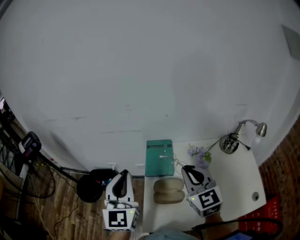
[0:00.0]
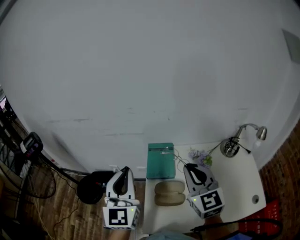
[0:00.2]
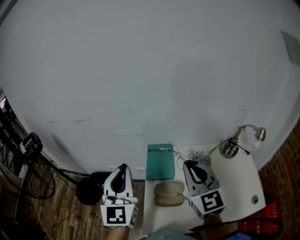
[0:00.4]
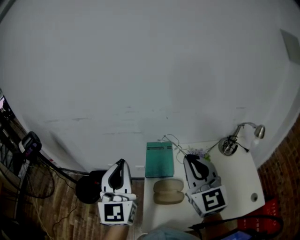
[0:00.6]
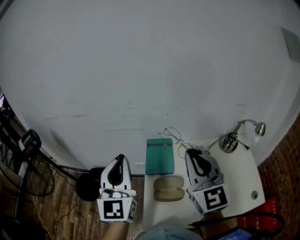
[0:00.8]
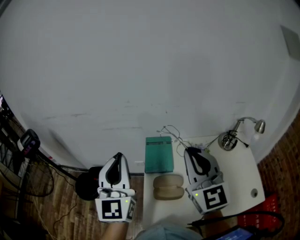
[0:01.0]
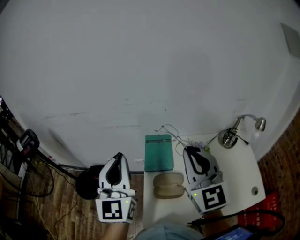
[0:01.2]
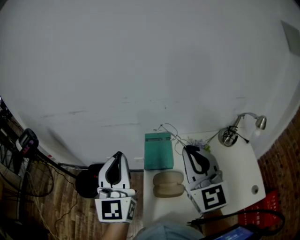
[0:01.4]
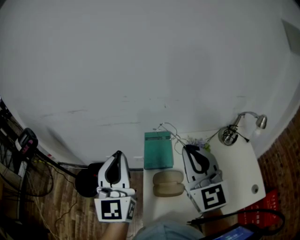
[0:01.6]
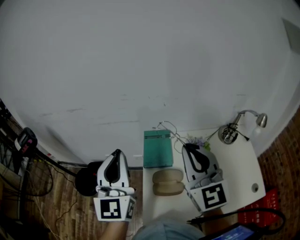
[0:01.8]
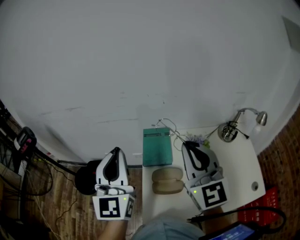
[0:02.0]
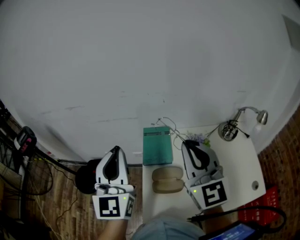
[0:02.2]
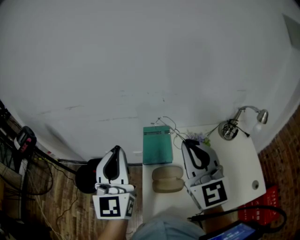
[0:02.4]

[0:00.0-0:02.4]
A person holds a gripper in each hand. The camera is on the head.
0:00.0 to 0:01.2: The left gripper shifts roughly 5 cm upward, while the right gripper heads upward, covering approximately 10 cm.
0:01.2 to 0:02.4: Both grippers stay about where they are.

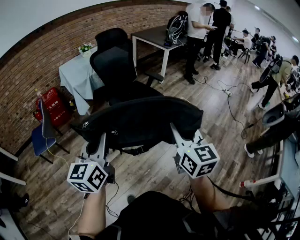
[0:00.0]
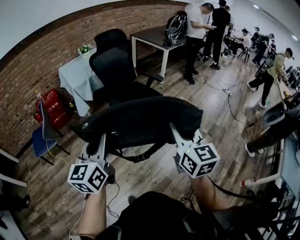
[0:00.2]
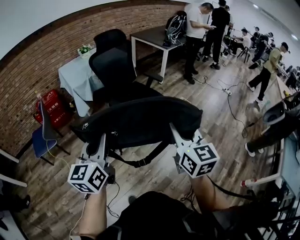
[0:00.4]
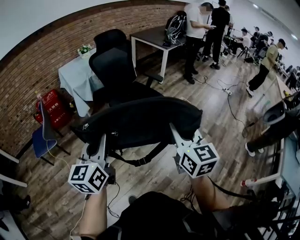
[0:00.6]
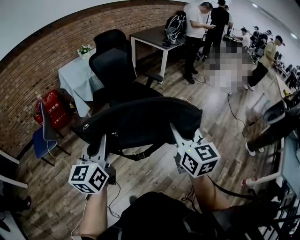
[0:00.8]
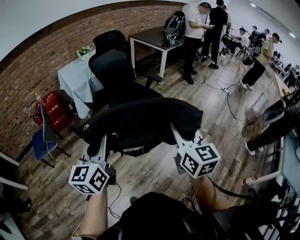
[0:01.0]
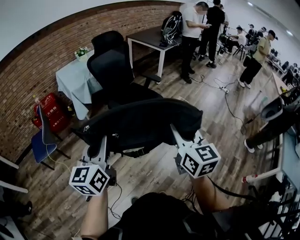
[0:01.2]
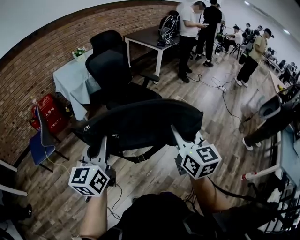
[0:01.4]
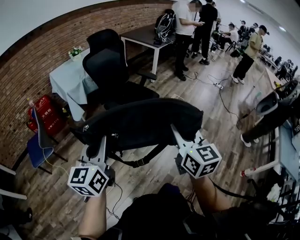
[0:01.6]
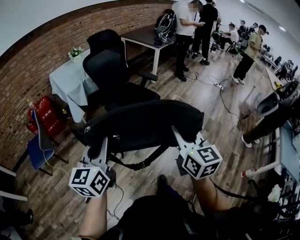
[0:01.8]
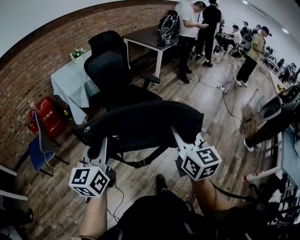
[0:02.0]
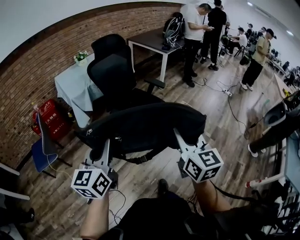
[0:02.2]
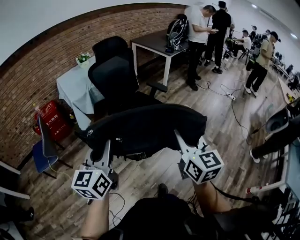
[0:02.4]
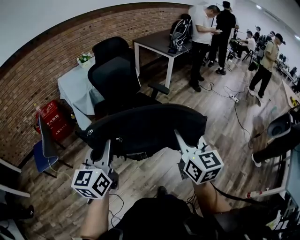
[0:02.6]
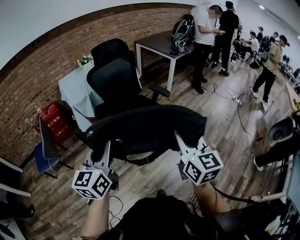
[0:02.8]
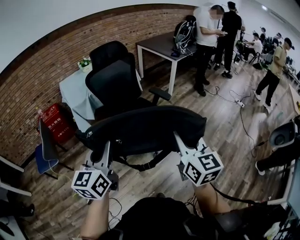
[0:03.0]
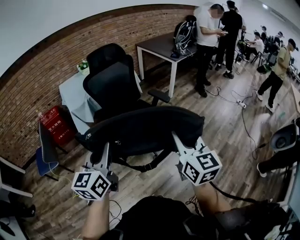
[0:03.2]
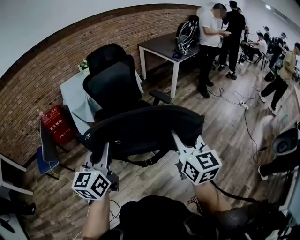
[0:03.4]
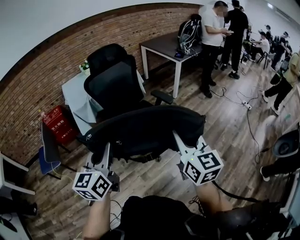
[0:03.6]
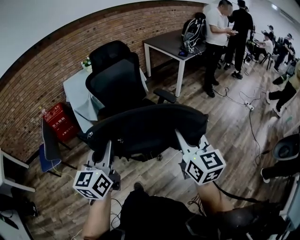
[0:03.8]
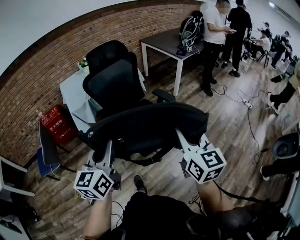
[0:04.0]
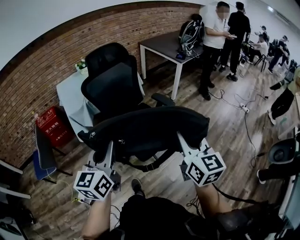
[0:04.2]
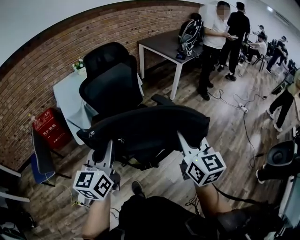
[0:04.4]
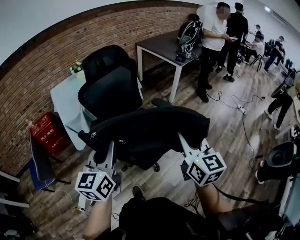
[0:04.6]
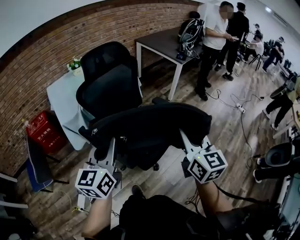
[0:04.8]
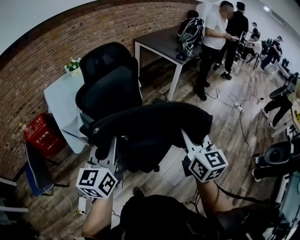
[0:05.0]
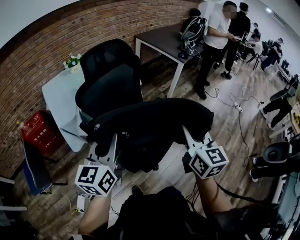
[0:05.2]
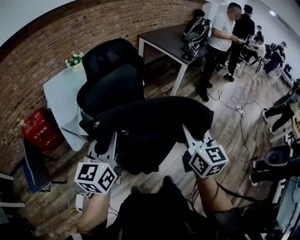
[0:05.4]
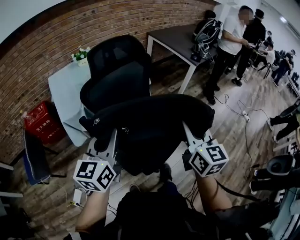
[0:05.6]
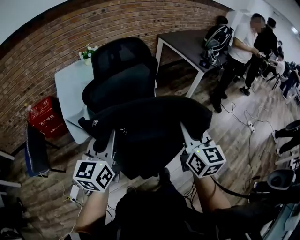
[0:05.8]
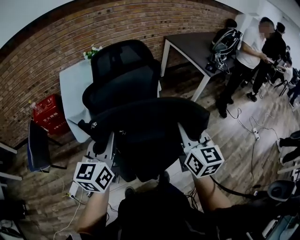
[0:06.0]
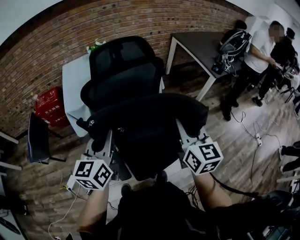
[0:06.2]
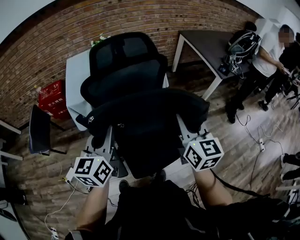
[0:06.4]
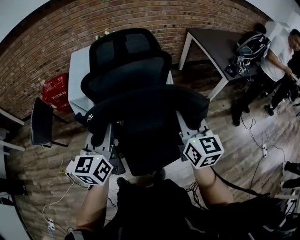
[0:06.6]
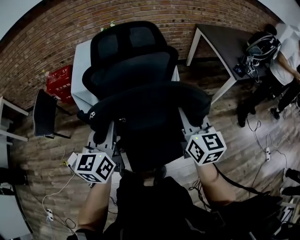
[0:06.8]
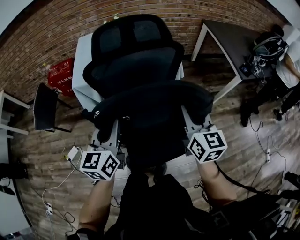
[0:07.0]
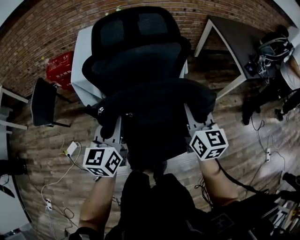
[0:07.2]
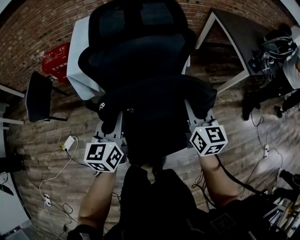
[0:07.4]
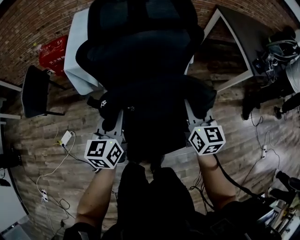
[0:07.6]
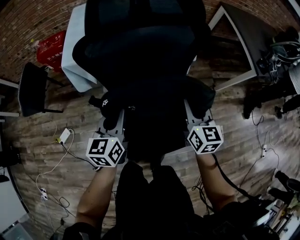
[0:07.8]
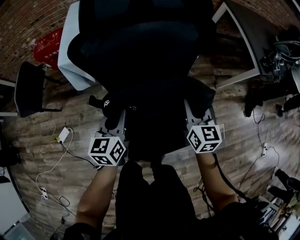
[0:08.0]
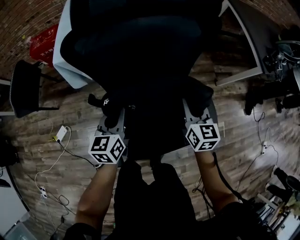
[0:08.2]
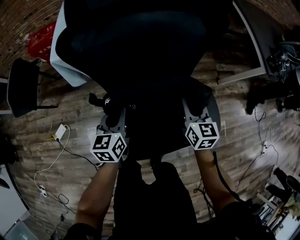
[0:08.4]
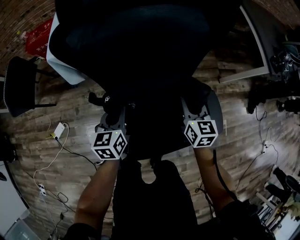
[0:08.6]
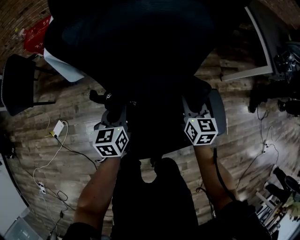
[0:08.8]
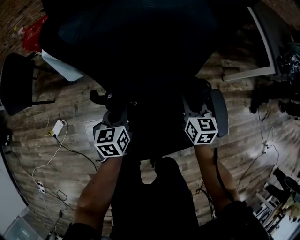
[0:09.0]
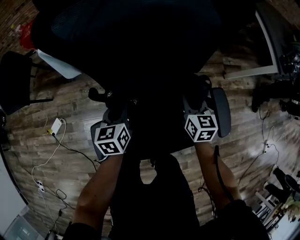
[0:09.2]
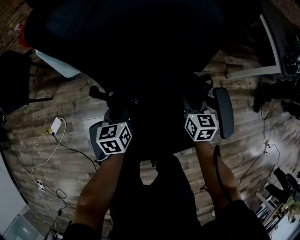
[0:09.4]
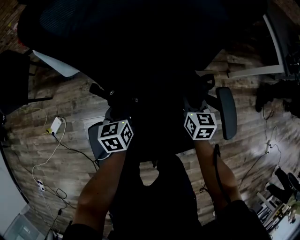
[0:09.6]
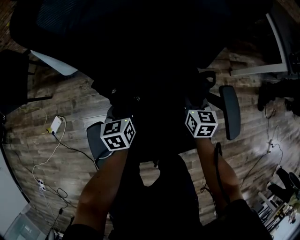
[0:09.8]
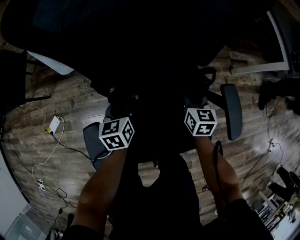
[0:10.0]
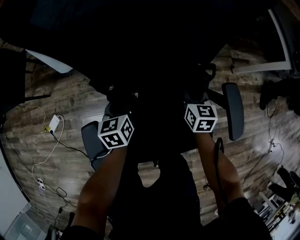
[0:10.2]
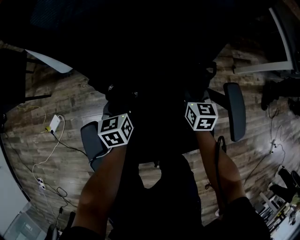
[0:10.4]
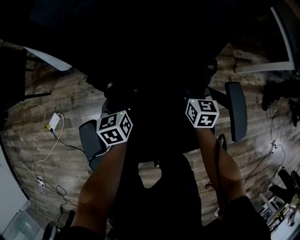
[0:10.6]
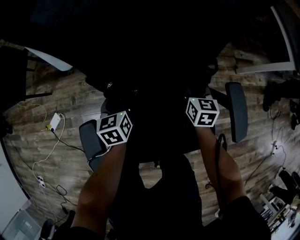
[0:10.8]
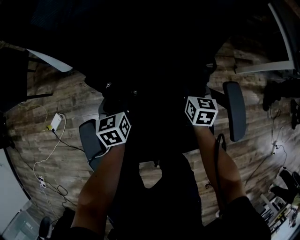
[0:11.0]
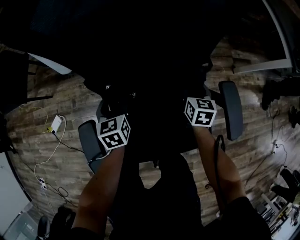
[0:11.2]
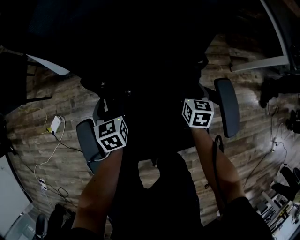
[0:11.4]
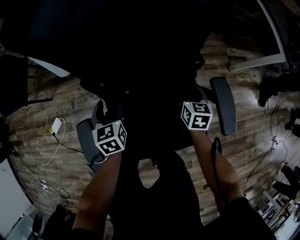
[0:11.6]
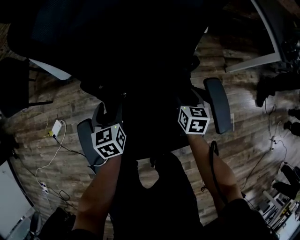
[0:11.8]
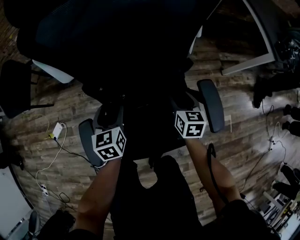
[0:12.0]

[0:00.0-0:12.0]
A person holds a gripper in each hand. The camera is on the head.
0:00.0 to 0:01.6: The grippers make only small movements.
0:01.6 to 0:03.0: The grippers both shift forward and to the right by roughly 20 cm.
0:03.0 to 0:04.4: Both grippers move forward, roughly 15 cm.
0:04.4 to 0:06.0: Both grippers travel together forward, about 25 cm.
0:06.0 to 0:07.6: The two grippers go some 20 cm downward and forward. The left gripper changes its angle by approximately 20 degrees.
0:07.6 to 0:09.0: The grippers both shift downward by some 25 cm.
0:09.0 to 0:10.4: Both grippers travel together downward, about 10 cm.
0:10.4 to 0:12.0: The right gripper travels upward and backward by approximately 10 cm, and opens up. The left gripper moves upward, some 10 cm, and opens up.

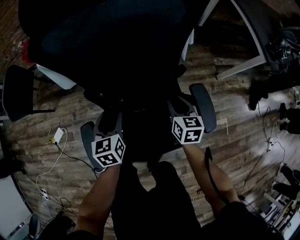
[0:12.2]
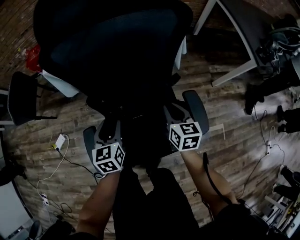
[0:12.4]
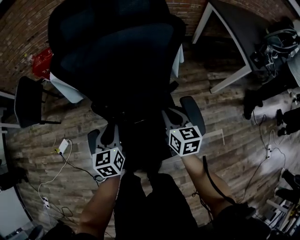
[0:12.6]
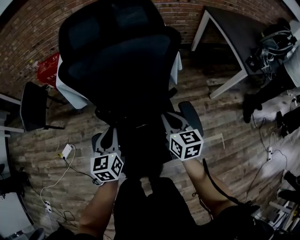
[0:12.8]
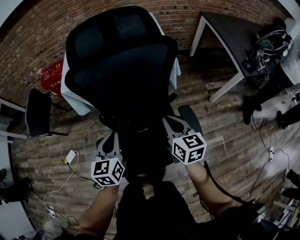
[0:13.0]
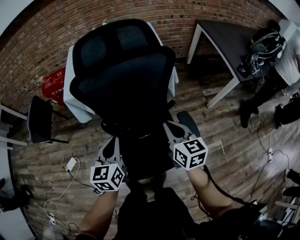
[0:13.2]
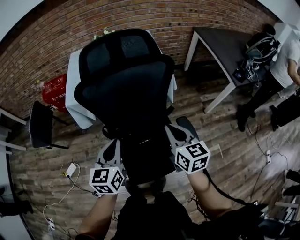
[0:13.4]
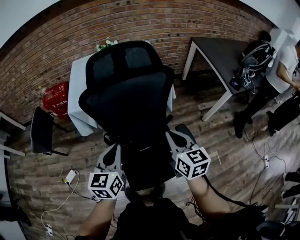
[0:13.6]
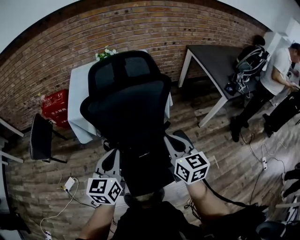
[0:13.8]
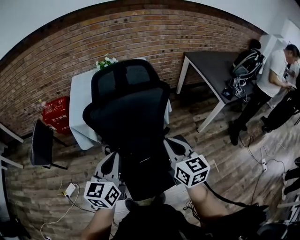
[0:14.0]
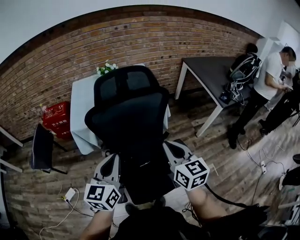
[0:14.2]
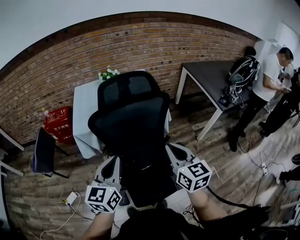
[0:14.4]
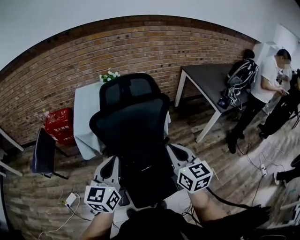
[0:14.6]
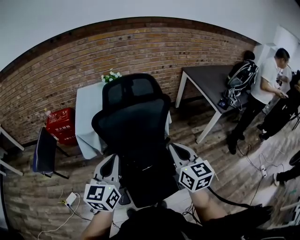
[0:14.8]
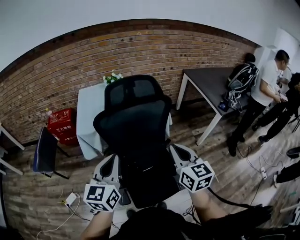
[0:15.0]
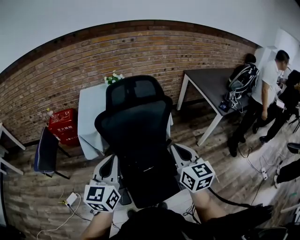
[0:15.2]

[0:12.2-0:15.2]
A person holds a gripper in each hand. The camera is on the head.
0:12.2 to 0:13.8: The grippers both shift upward by about 35 cm. The left gripper swivels about 30 degrees, and closes its fingers, while the right gripper closes.
0:13.8 to 0:15.2: Both grippers move upward, about 10 cm.

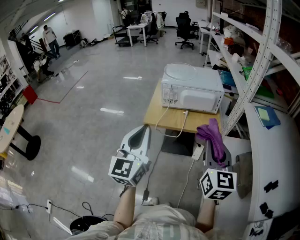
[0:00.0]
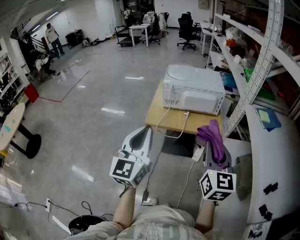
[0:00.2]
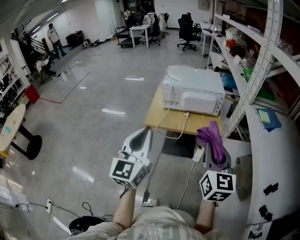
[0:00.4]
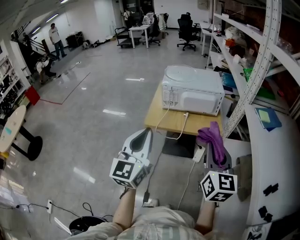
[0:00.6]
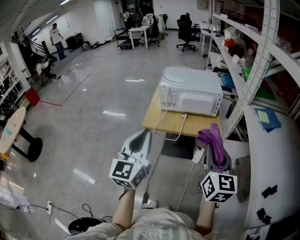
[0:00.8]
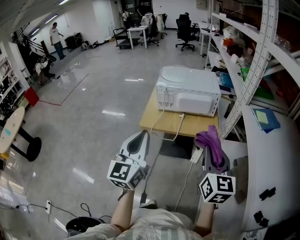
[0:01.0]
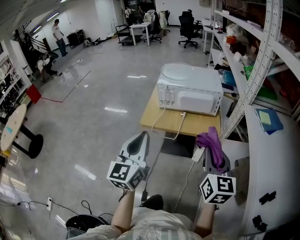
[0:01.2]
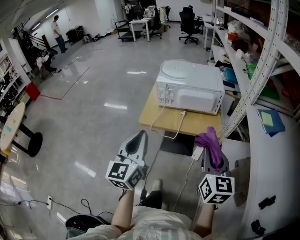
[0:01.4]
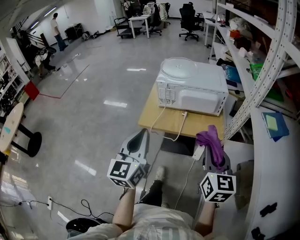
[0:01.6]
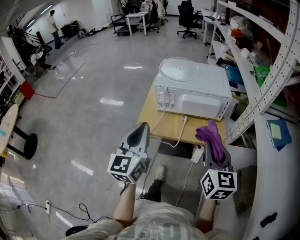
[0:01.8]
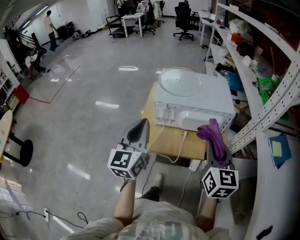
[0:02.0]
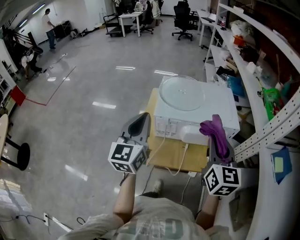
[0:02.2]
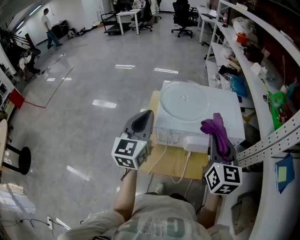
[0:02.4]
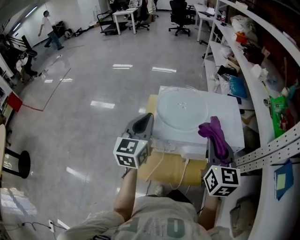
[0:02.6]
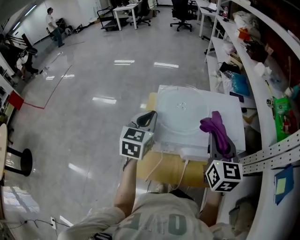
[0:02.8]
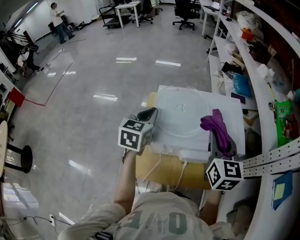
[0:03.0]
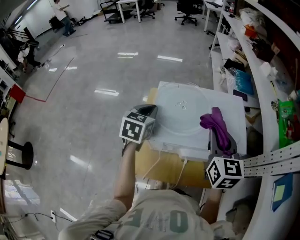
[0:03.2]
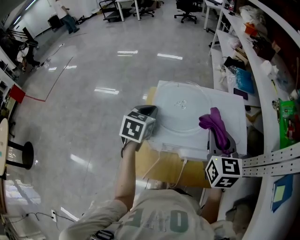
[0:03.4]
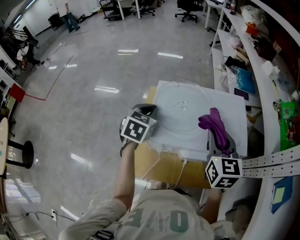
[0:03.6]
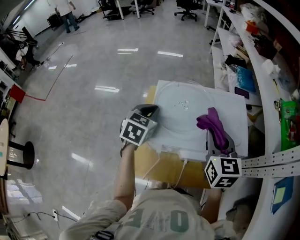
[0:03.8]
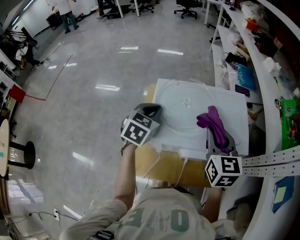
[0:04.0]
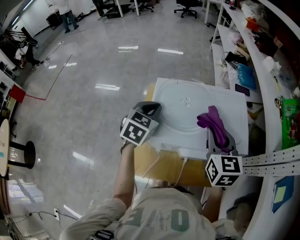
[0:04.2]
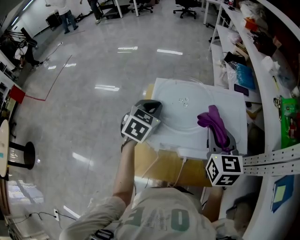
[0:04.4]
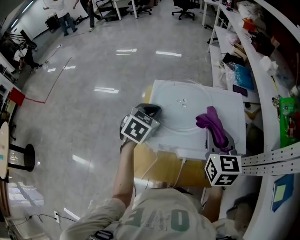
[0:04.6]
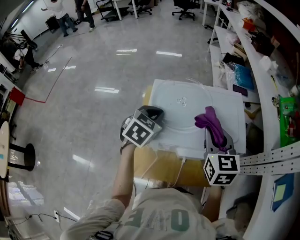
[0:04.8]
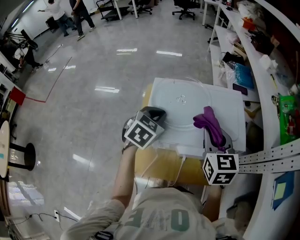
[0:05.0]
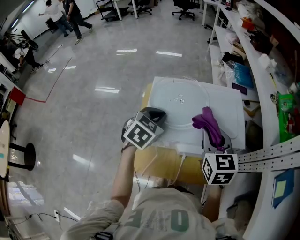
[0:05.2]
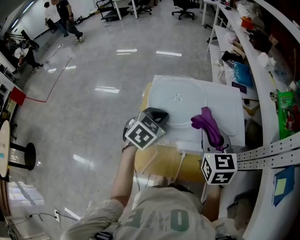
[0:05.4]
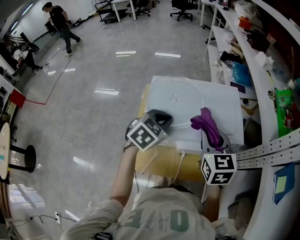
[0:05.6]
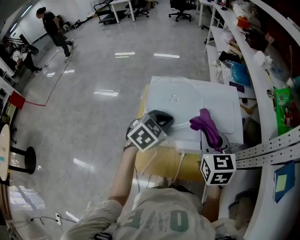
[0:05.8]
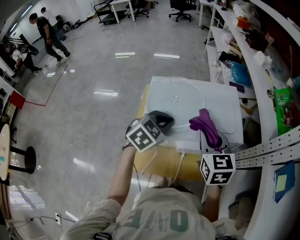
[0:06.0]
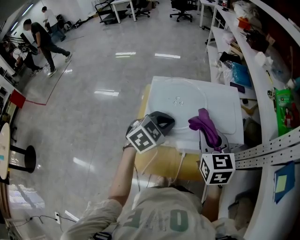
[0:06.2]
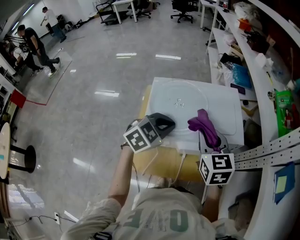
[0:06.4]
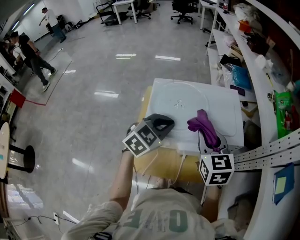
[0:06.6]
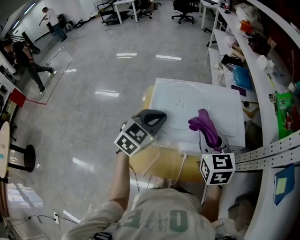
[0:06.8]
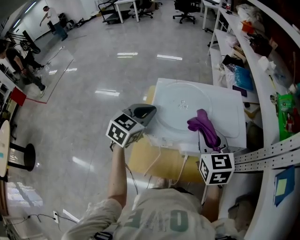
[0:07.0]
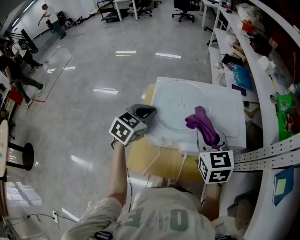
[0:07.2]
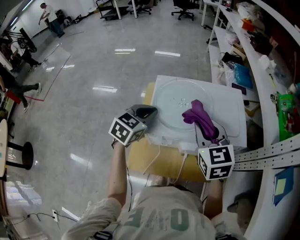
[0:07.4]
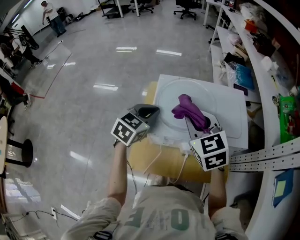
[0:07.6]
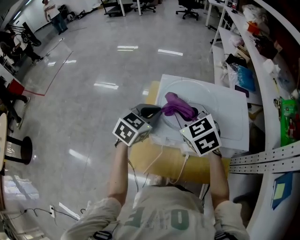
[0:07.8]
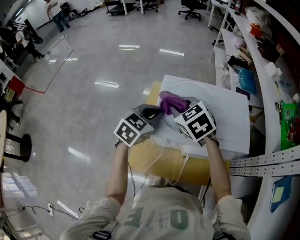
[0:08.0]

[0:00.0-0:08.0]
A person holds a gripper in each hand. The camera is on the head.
0:00.0 to 0:01.6: Both grippers move forward and downward, roughly 10 cm.
0:01.6 to 0:03.2: Both grippers are carried forward, roughly 50 cm. The left gripper points its fingers about 40 degrees further downward.
0:03.2 to 0:04.8: The left gripper heads to the right, covering about 5 cm, and turns by some 20 degrees.
0:04.8 to 0:06.4: The left gripper travels to the right and backward by roughly 10 cm, and rotates approximately 20 degrees.
0:06.4 to 0:08.0: The right gripper moves to the left, some 20 cm, and swivels some 40 degrees, while the left gripper is displaced to the left by some 10 cm, and swivels approximately 20 degrees.
